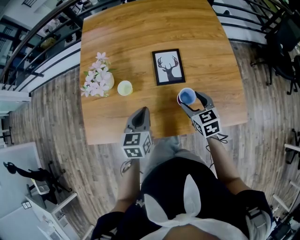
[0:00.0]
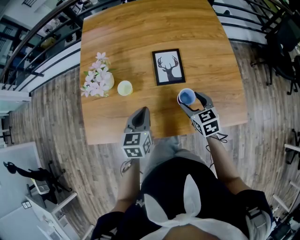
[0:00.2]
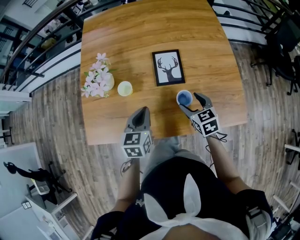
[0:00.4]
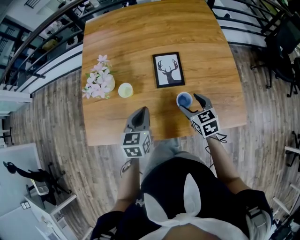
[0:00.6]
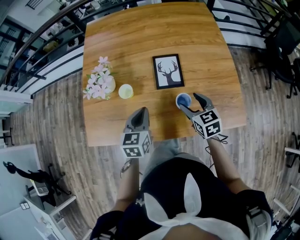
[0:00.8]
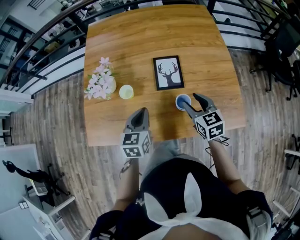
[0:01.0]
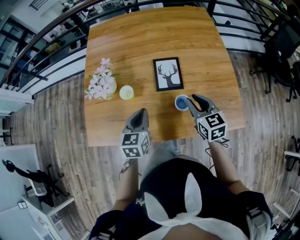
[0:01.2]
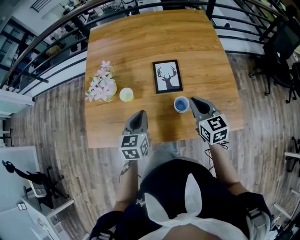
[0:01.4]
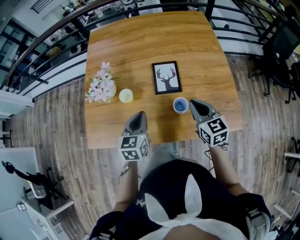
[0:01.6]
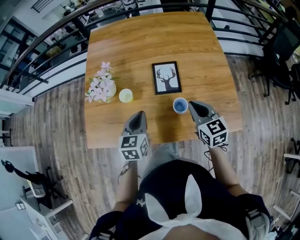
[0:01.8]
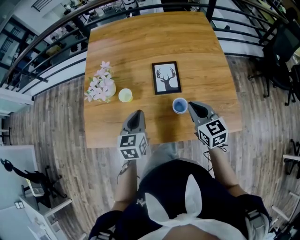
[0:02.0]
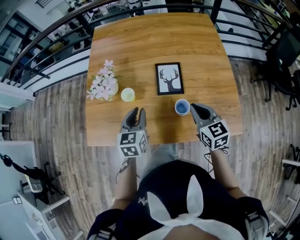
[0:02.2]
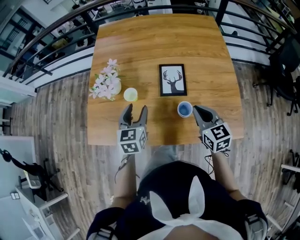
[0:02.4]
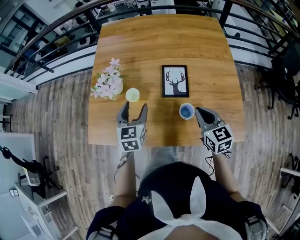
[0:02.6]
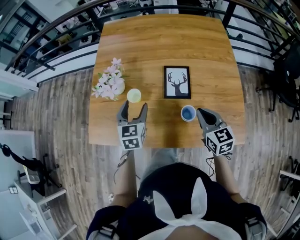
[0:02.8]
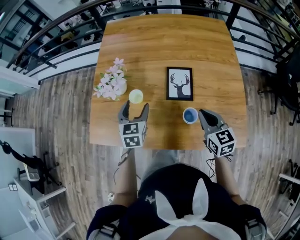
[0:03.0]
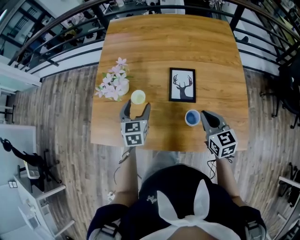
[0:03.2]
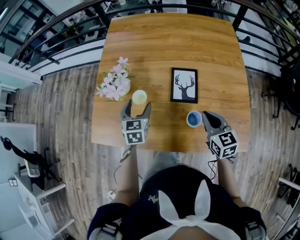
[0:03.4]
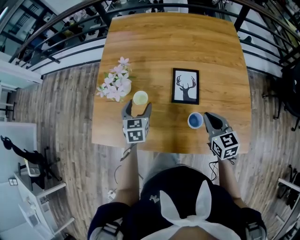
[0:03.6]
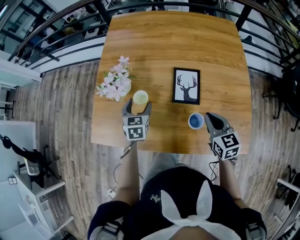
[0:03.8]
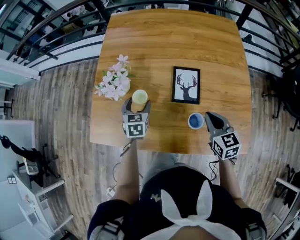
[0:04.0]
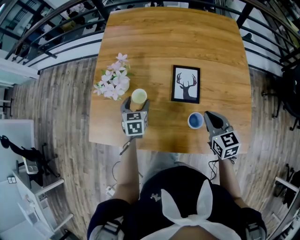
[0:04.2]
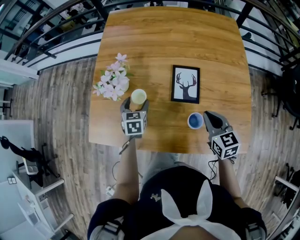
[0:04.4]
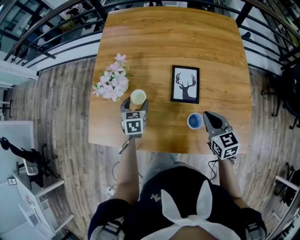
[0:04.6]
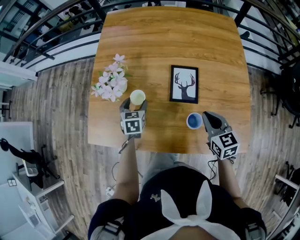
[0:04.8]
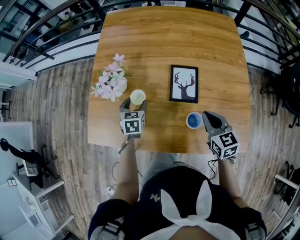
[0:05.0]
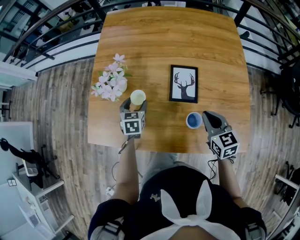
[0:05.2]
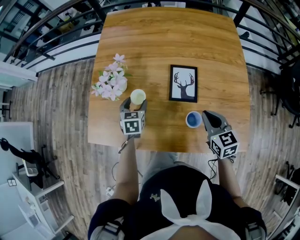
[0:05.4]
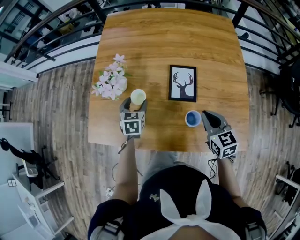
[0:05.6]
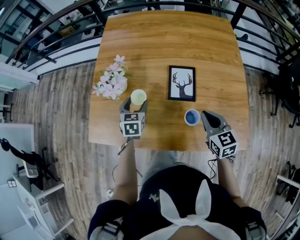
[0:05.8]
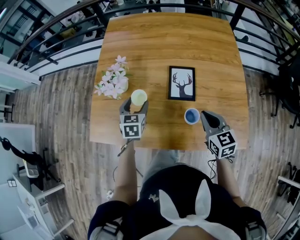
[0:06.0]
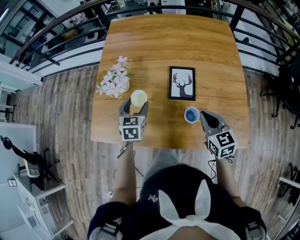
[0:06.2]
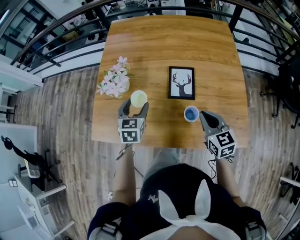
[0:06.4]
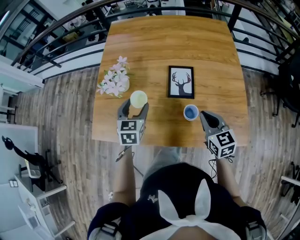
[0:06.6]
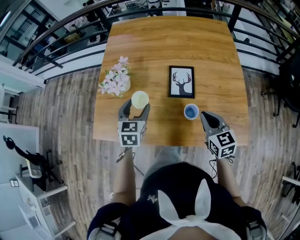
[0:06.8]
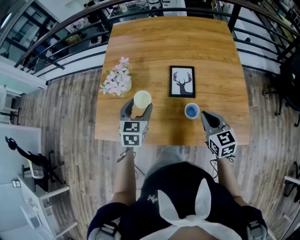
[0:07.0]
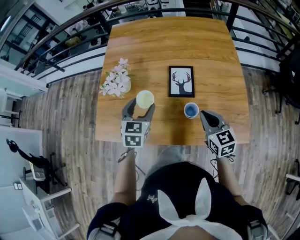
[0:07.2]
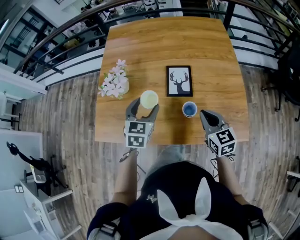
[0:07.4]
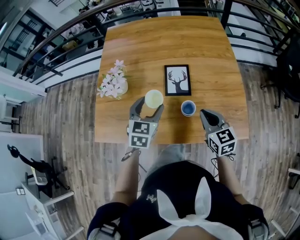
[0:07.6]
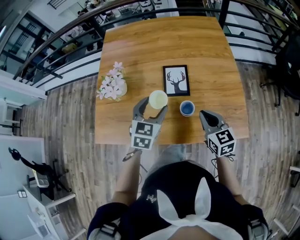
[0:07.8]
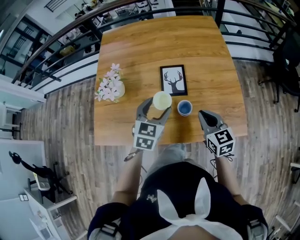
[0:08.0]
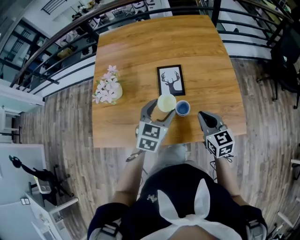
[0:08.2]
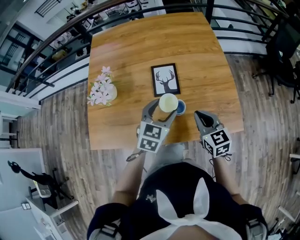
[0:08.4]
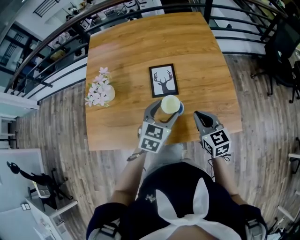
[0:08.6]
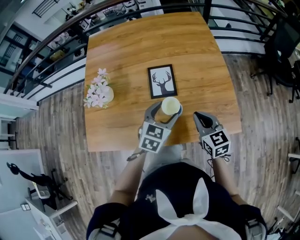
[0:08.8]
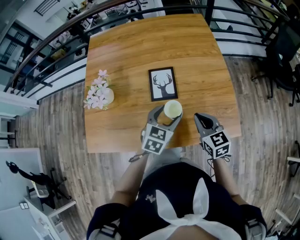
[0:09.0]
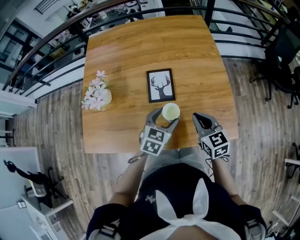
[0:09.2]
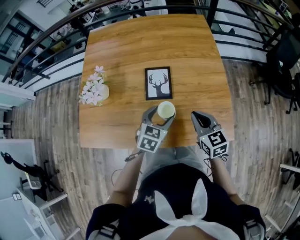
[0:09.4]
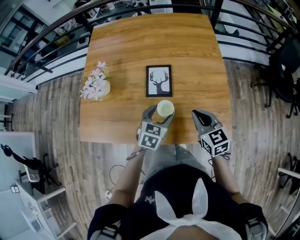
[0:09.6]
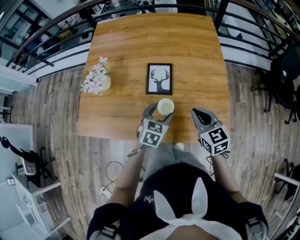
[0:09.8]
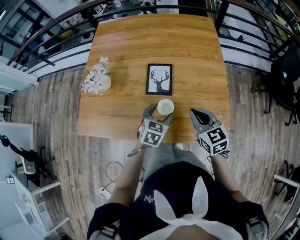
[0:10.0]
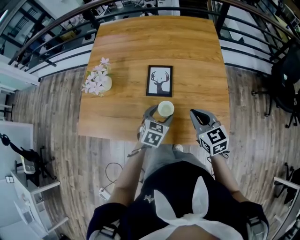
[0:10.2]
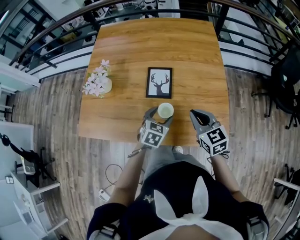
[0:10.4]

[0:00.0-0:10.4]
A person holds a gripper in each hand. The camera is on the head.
0:00.0 to 0:01.4: The right gripper heads upward, covering approximately 10 cm, and closes.
0:01.4 to 0:03.0: The left gripper shifts about 10 cm forward and to the left, and opens its fingers.
0:03.0 to 0:04.4: The left gripper heads downward and forward, covering roughly 10 cm. The right gripper ends up roughly 5 cm from where it was.
0:04.4 to 0:06.0: The left gripper shifts roughly 5 cm upward.
0:06.0 to 0:07.4: The left gripper is displaced upward, backward and to the right by approximately 15 cm; the right gripper shifts by some 5 cm.
0:07.4 to 0:09.0: The left gripper travels to the right by some 20 cm, and swivels some 20 degrees; the right gripper moves some 5 cm.
0:09.0 to 0:10.4: The right gripper moves some 5 cm. The left gripper goes about 5 cm downward.

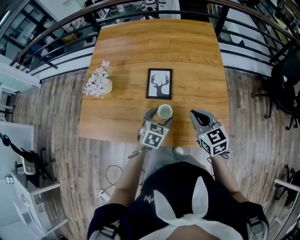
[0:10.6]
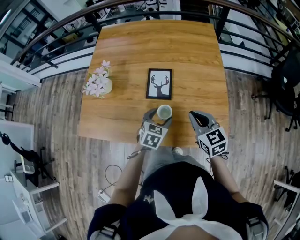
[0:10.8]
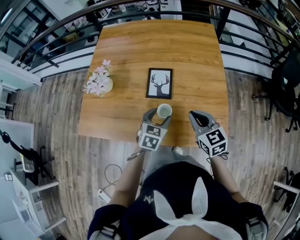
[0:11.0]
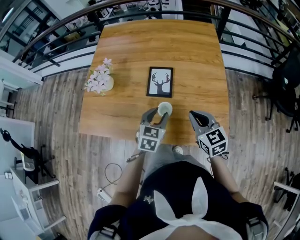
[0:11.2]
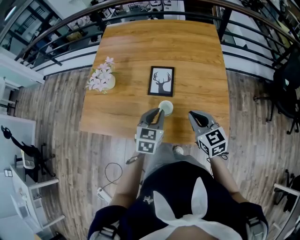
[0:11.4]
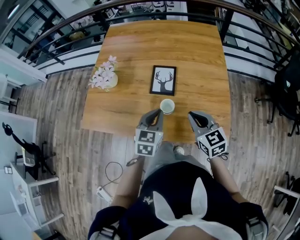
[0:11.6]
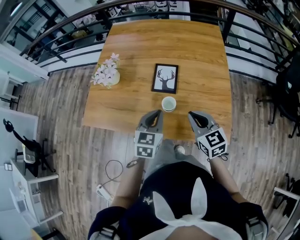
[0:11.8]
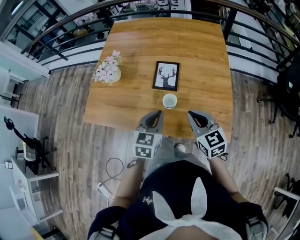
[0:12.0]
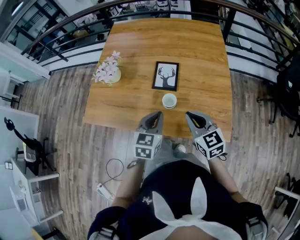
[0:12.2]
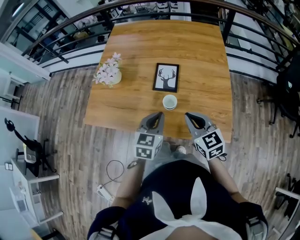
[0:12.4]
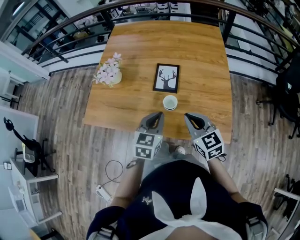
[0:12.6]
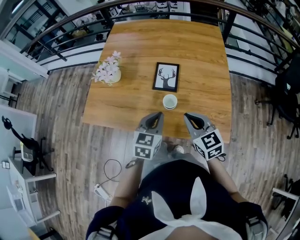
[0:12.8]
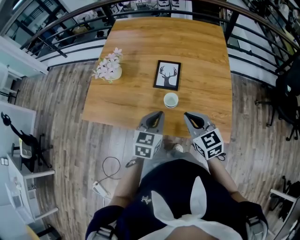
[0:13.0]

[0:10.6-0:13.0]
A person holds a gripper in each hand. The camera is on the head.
0:10.6 to 0:11.8: The right gripper shifts about 5 cm backward. Meanwhile the left gripper heads upward and backward, covering some 10 cm, changes its angle by some 20 degrees, and closes up.
0:11.8 to 0:13.0: The grippers make only small movements.

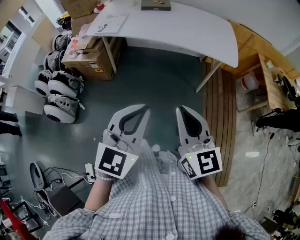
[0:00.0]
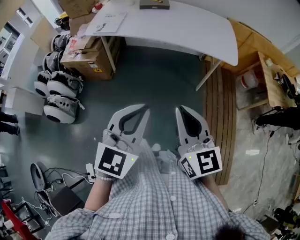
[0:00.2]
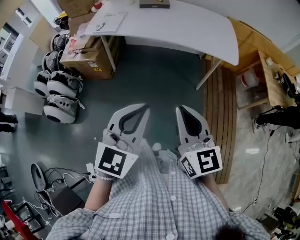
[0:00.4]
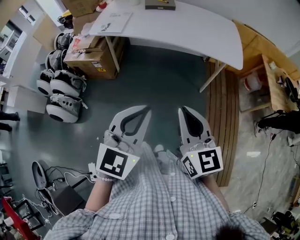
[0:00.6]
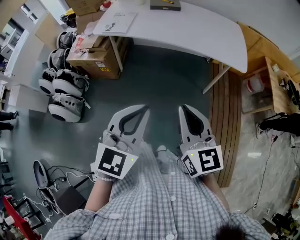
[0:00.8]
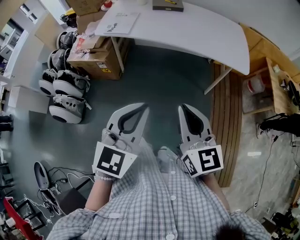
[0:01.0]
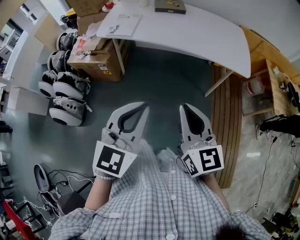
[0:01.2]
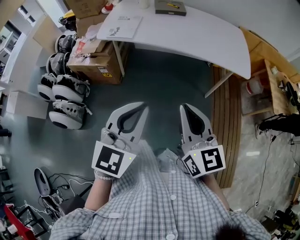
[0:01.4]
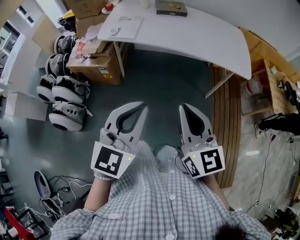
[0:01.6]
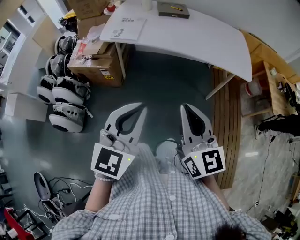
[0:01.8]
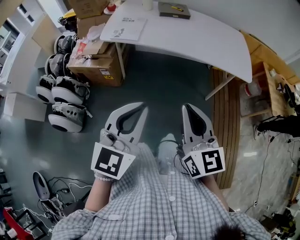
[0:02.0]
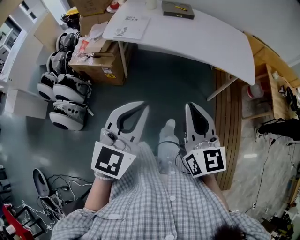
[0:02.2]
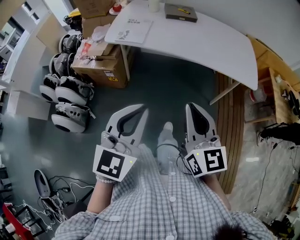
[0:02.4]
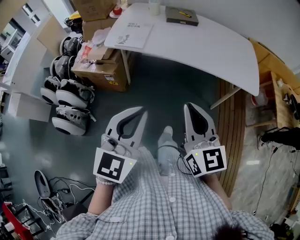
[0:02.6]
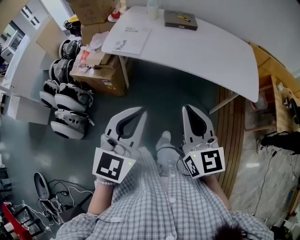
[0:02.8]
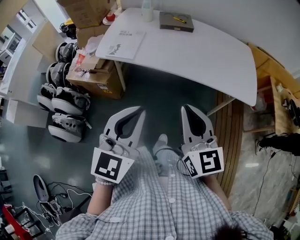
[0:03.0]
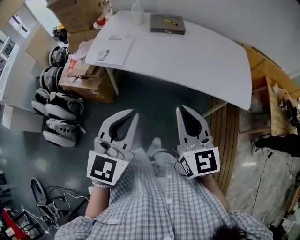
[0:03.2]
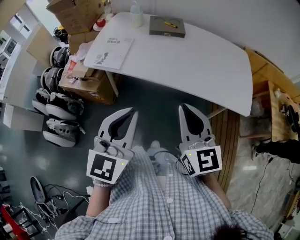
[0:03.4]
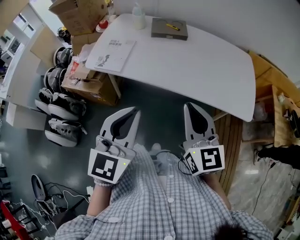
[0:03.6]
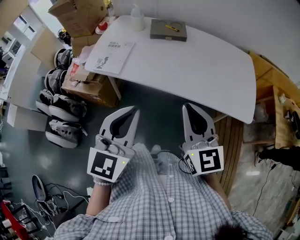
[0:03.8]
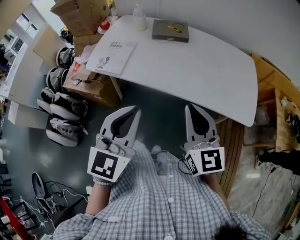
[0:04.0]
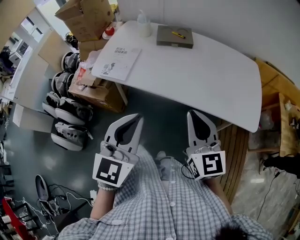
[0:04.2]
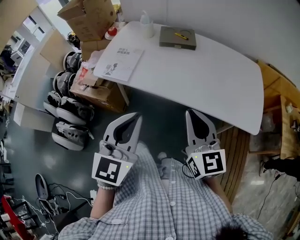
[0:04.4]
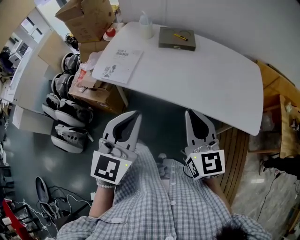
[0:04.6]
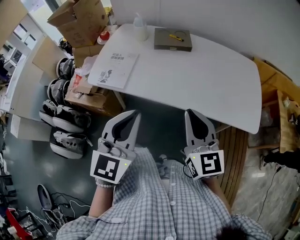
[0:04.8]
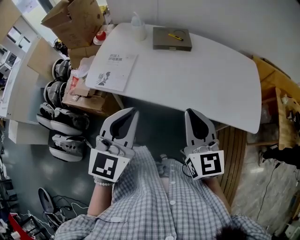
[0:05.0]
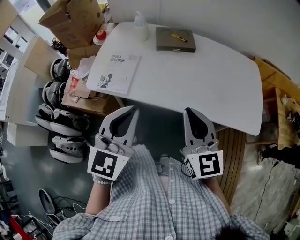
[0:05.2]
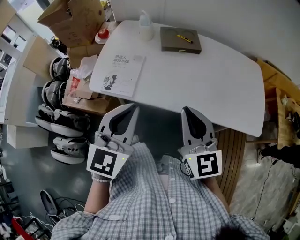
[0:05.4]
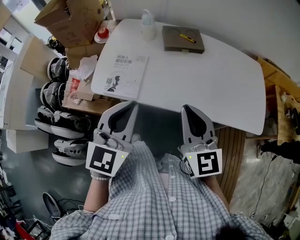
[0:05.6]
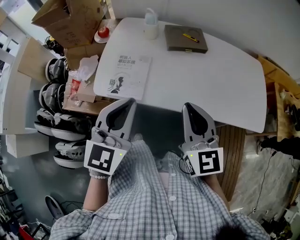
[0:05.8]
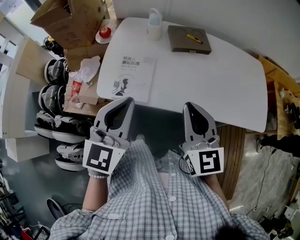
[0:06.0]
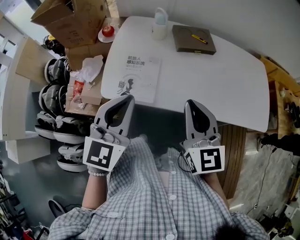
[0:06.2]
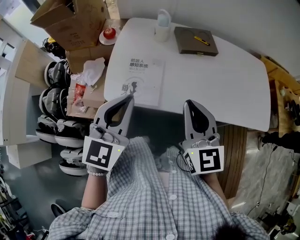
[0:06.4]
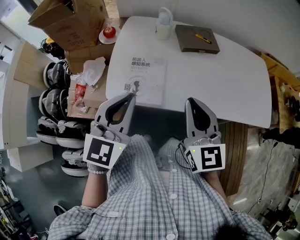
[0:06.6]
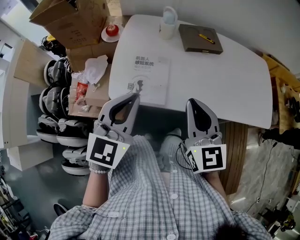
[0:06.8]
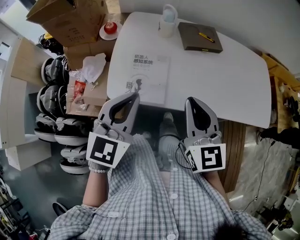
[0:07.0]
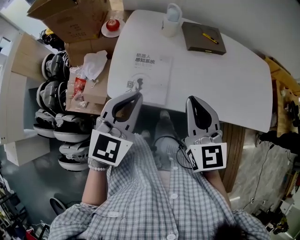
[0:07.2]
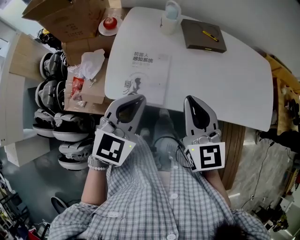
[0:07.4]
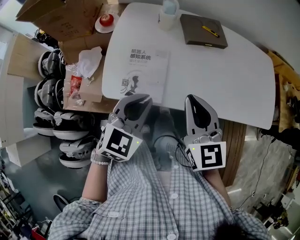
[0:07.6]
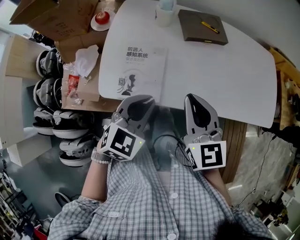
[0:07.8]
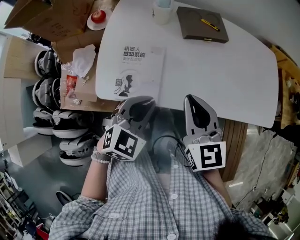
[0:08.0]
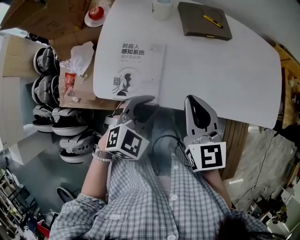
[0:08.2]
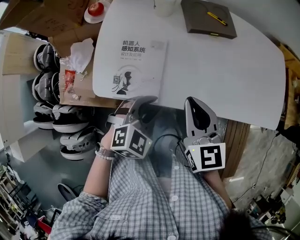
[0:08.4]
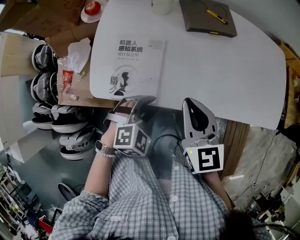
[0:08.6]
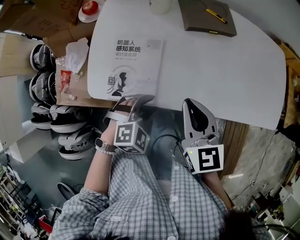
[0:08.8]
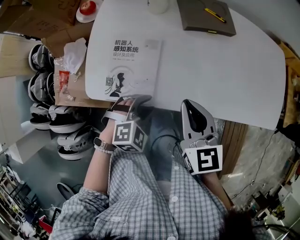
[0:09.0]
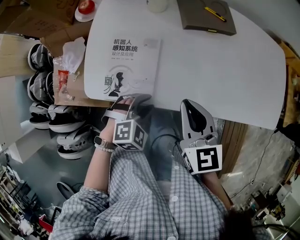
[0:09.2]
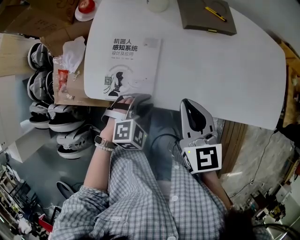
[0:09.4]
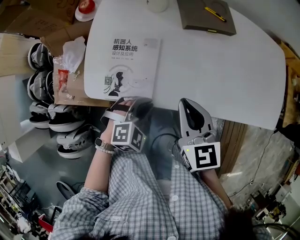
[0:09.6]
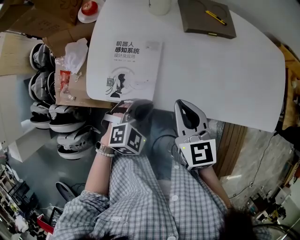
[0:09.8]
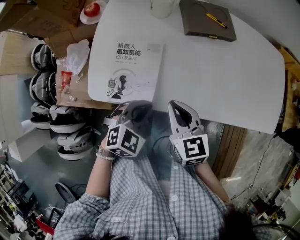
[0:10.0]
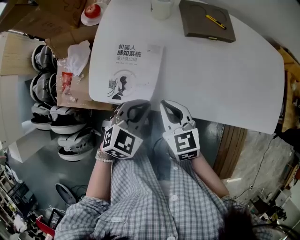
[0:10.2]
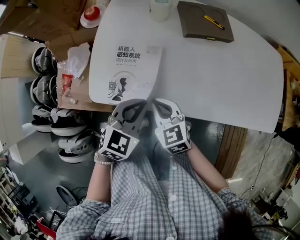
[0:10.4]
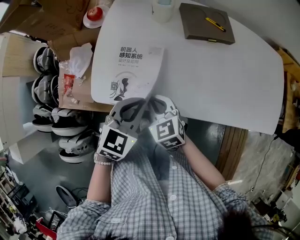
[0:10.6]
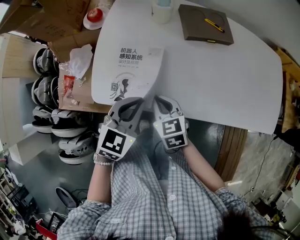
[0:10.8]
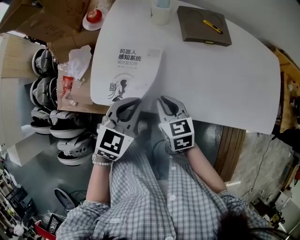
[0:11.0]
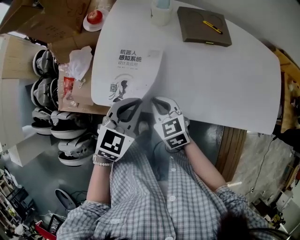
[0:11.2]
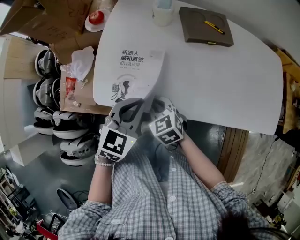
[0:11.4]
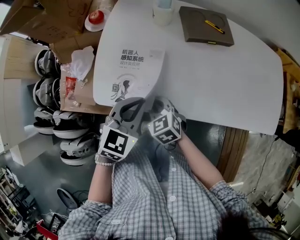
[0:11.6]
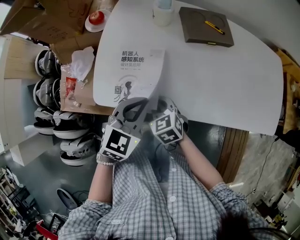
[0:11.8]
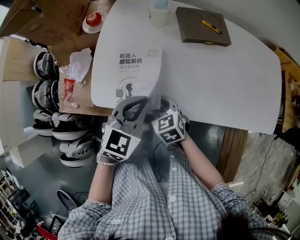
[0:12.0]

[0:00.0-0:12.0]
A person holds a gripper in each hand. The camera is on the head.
0:00.0 to 0:01.6: The grippers both shift to the left and forward by roughly 15 cm.
0:01.6 to 0:03.0: The two grippers go roughly 15 cm forward.
0:03.0 to 0:04.4: Both grippers travel together forward and to the right, approximately 15 cm.
0:04.4 to 0:06.0: Both grippers travel together to the left and forward, some 25 cm.
0:06.0 to 0:07.6: The right gripper goes about 10 cm to the left and forward. Meanwhile the left gripper shifts approximately 10 cm downward and forward, and turns by about 20 degrees.
0:07.6 to 0:09.0: The right gripper goes approximately 10 cm downward. Meanwhile the left gripper goes roughly 20 cm downward and to the right, swivels roughly 40 degrees, and opens up.
0:09.0 to 0:10.4: The right gripper shifts some 15 cm downward and to the left, and rotates about 20 degrees, while the left gripper moves upward, some 10 cm, rotates some 30 degrees, and closes.
0:10.4 to 0:12.0: The right gripper ends up approximately 5 cm from where it was.
